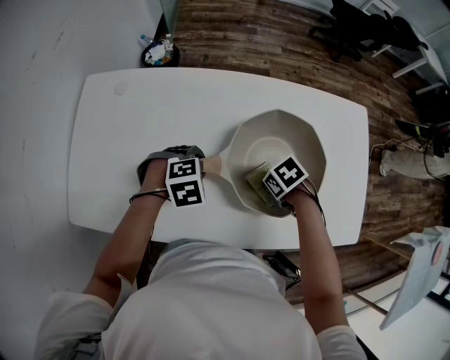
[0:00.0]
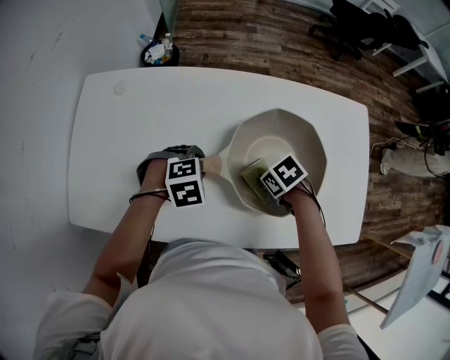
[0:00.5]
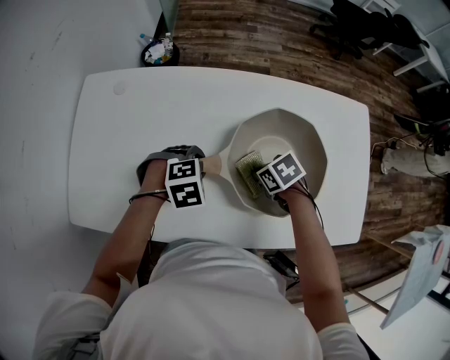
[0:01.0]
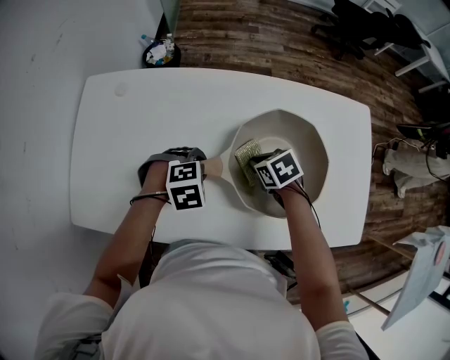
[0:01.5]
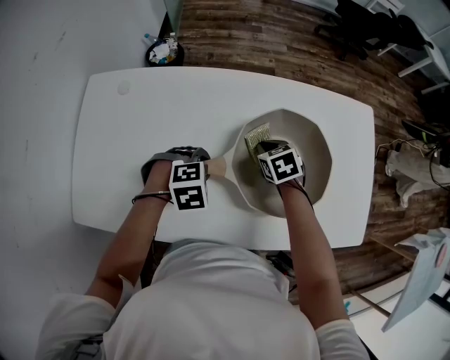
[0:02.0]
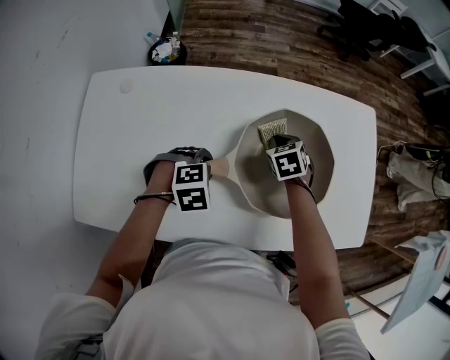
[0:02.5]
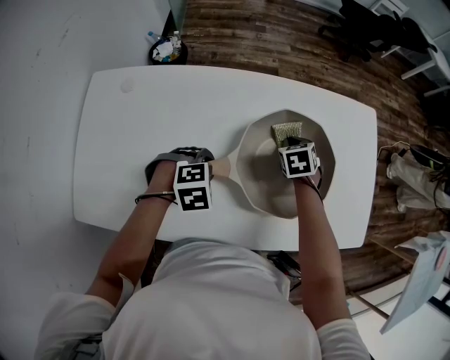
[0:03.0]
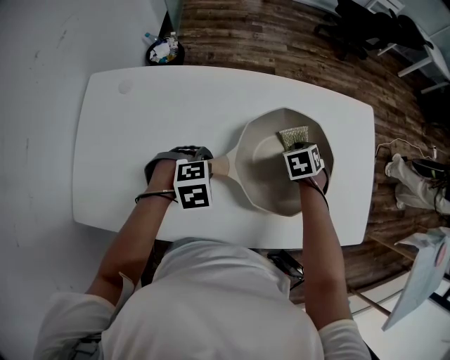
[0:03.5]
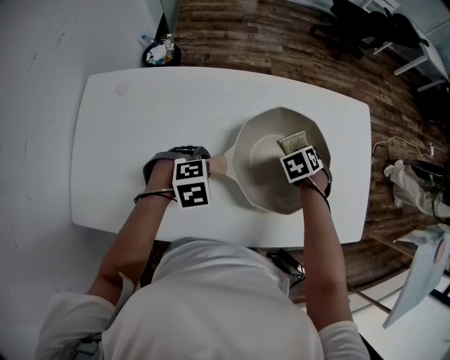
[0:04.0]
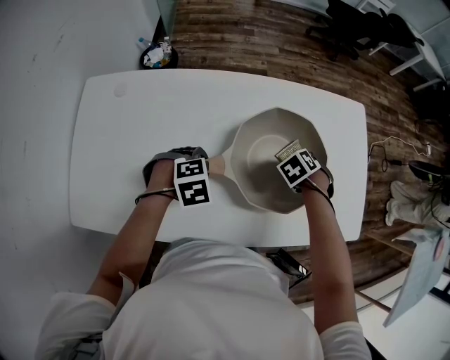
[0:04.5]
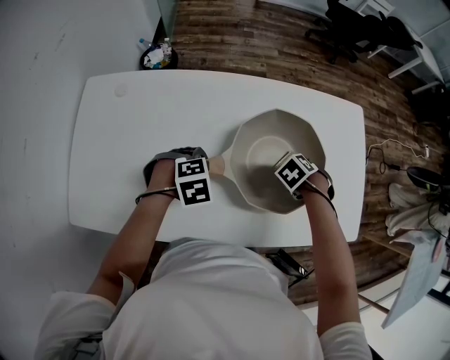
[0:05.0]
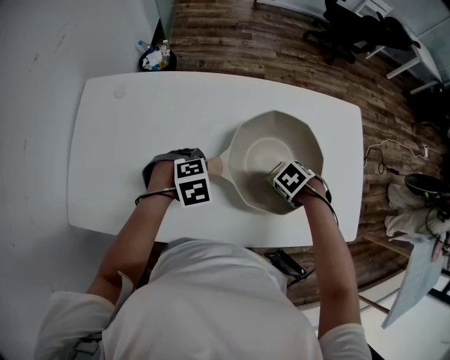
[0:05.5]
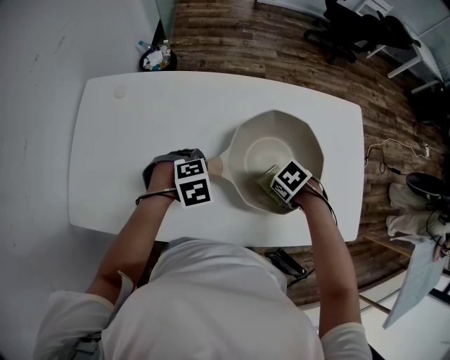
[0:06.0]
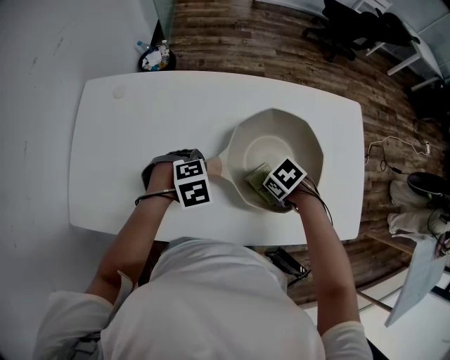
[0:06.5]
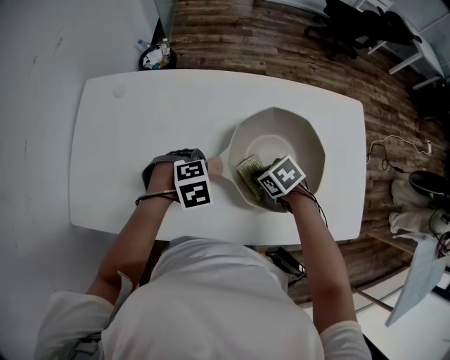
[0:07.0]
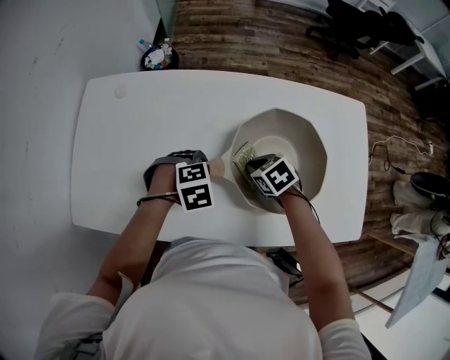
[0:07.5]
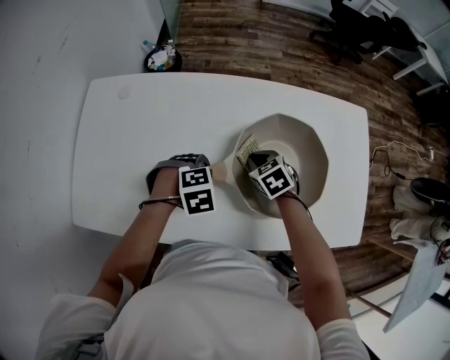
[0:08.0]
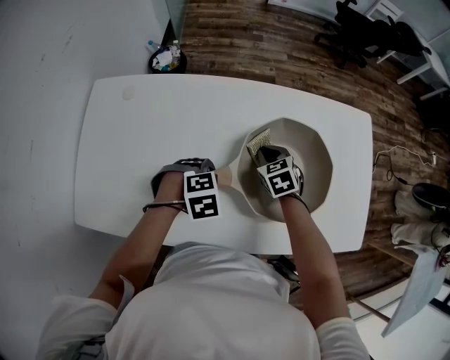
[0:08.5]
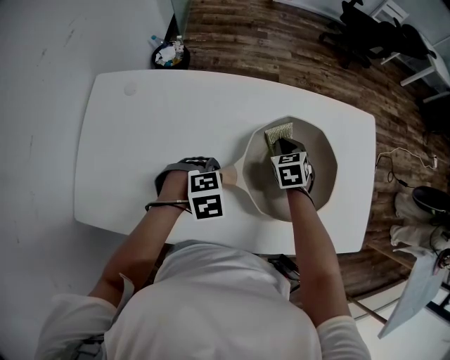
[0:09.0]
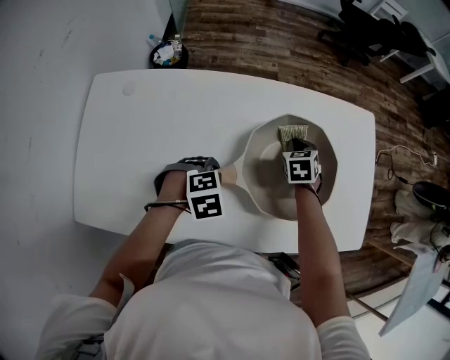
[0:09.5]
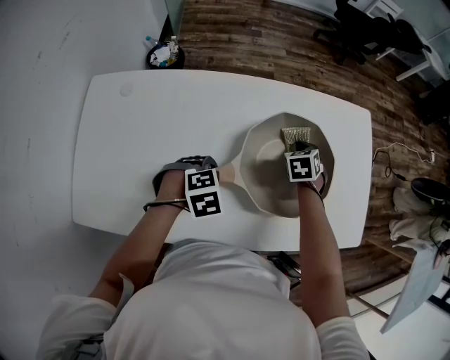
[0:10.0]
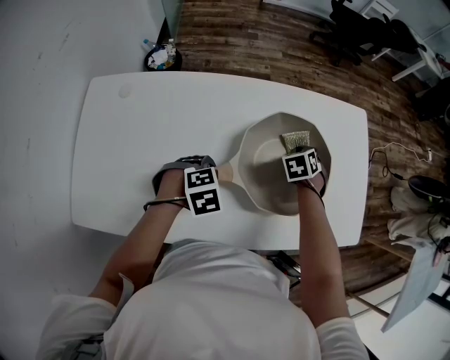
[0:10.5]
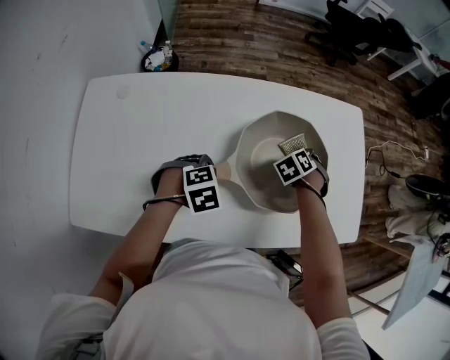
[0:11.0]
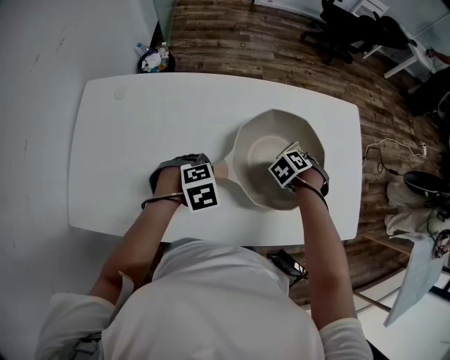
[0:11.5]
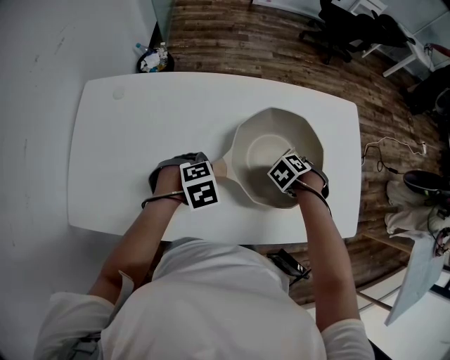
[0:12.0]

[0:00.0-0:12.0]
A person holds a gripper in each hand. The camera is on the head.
0:00.0 to 0:02.0: The right gripper changes place by about 15 cm, and turns by approximately 30 degrees.
0:02.0 to 0:04.0: The right gripper changes place by some 15 cm, and swivels approximately 30 degrees.
0:04.0 to 0:06.0: The right gripper moves some 15 cm, and rotates roughly 40 degrees.
0:06.0 to 0:08.0: The right gripper shifts by roughly 15 cm, and changes its angle by about 40 degrees.
0:08.0 to 0:10.0: The right gripper changes place by roughly 15 cm, and changes its angle by approximately 30 degrees.
0:10.0 to 0:12.0: The right gripper moves about 10 cm, and rotates roughly 40 degrees.

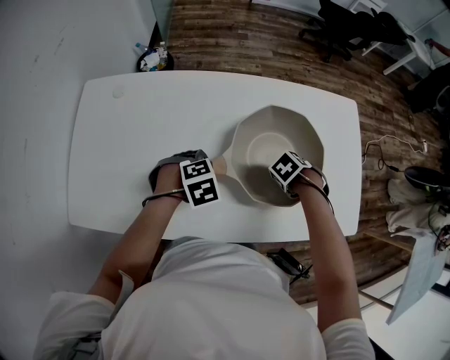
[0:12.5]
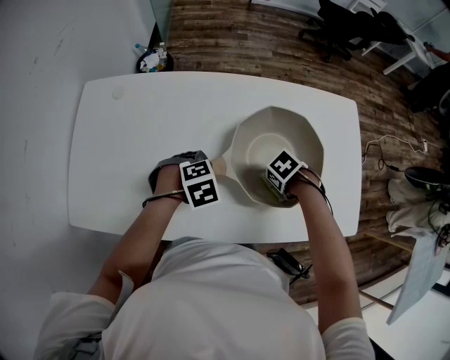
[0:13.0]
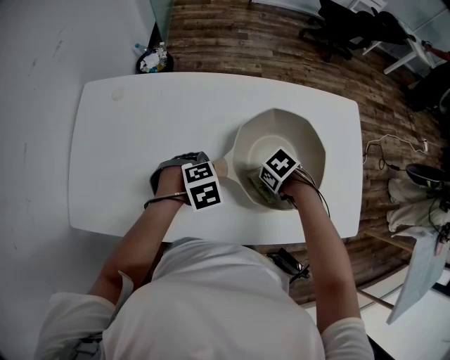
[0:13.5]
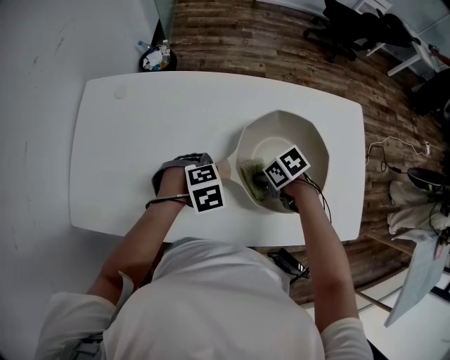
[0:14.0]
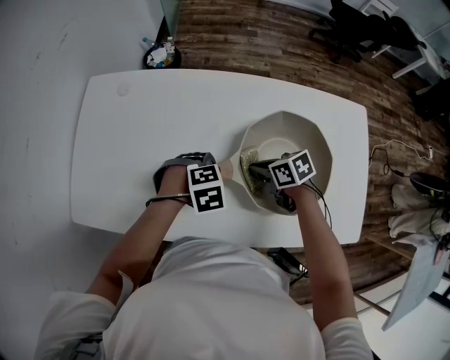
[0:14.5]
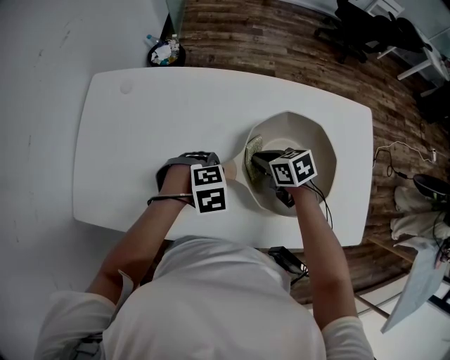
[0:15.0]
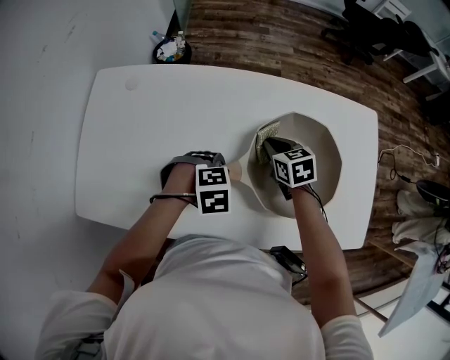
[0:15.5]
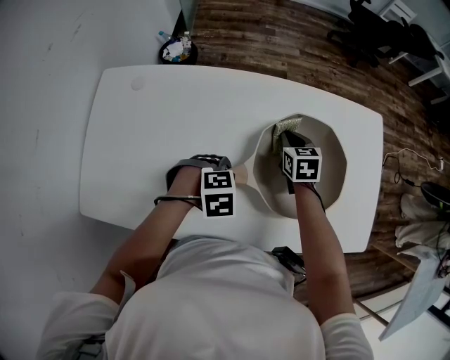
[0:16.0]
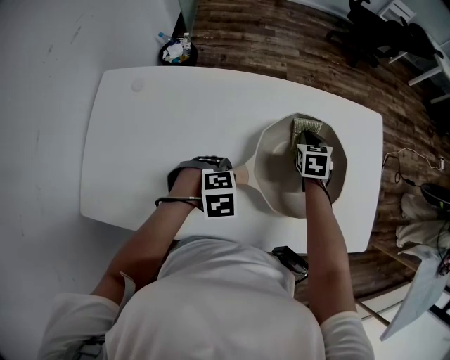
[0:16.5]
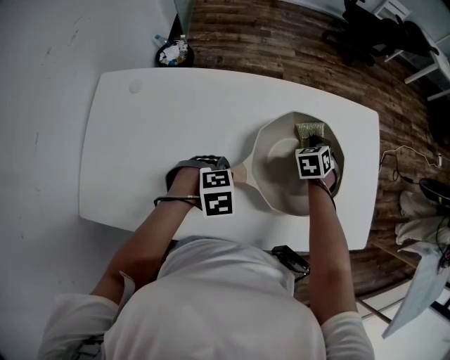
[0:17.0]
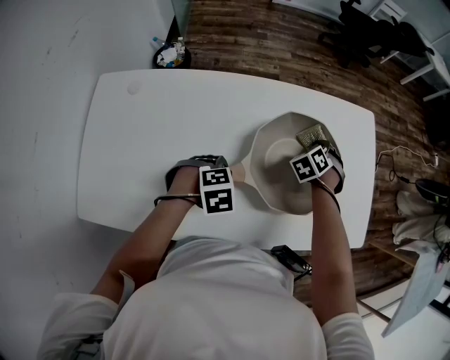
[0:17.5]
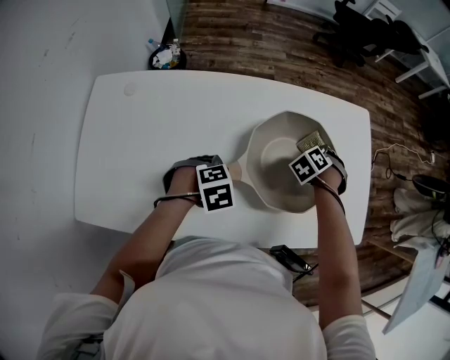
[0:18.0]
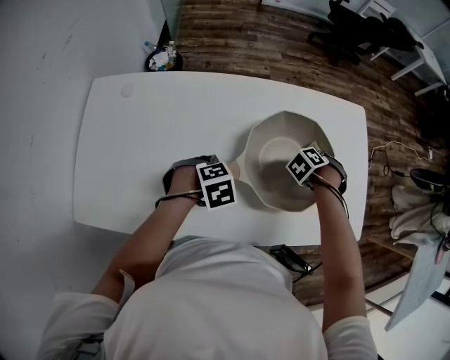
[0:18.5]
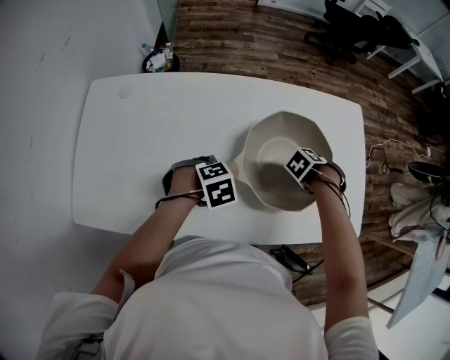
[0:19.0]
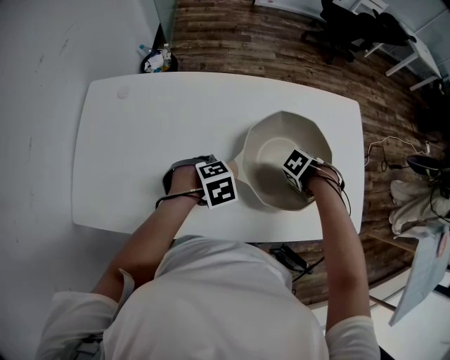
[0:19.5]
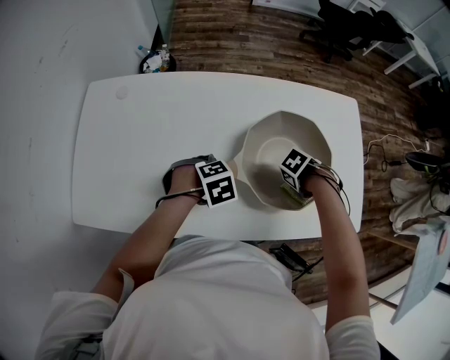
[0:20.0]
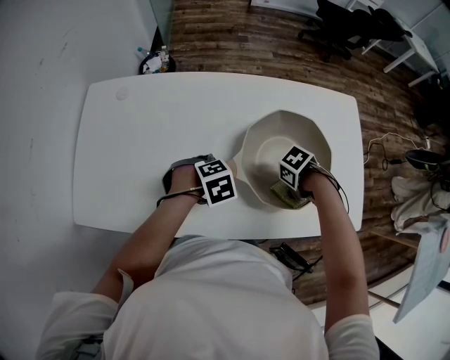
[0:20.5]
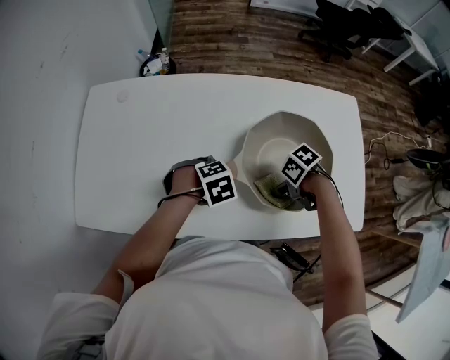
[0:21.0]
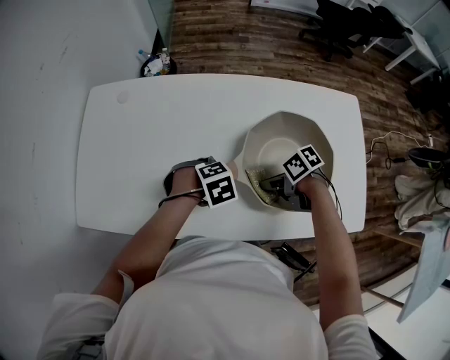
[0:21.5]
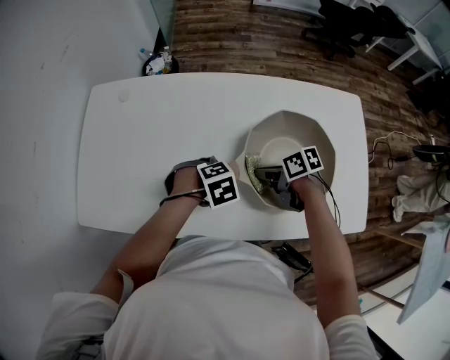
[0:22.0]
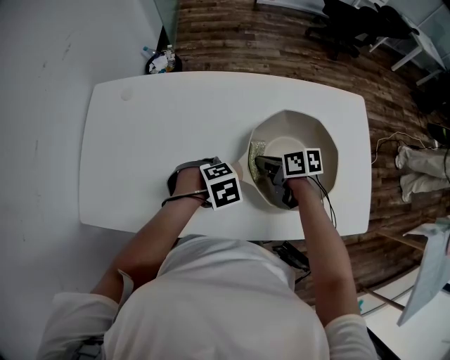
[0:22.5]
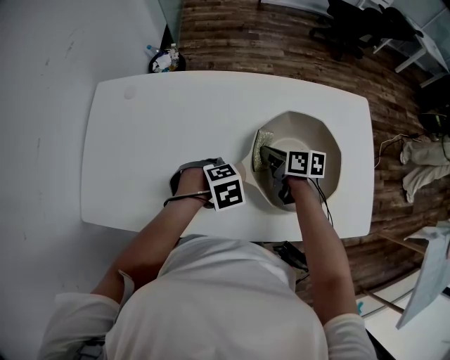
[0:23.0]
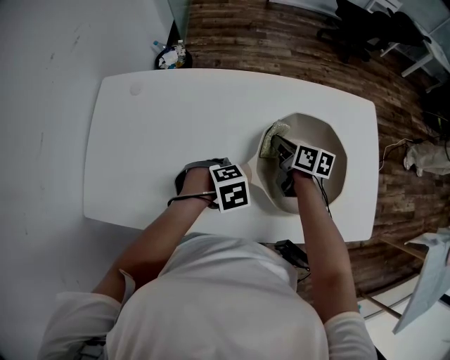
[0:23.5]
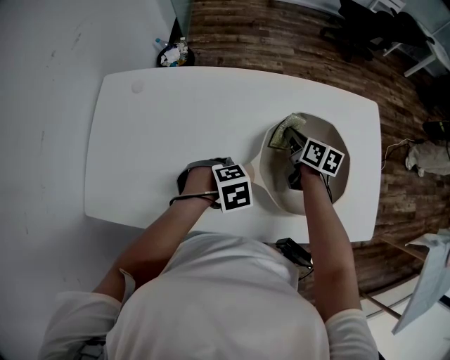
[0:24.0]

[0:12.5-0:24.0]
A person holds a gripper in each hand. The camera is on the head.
0:12.5 to 0:14.5: The right gripper shifts by approximately 15 cm, and tips its fingers upward by roughly 30 degrees.
0:14.5 to 0:16.5: The right gripper moves roughly 20 cm, and changes its angle by roughly 50 degrees.
0:16.5 to 0:18.5: The right gripper changes place by approximately 15 cm, and changes its angle by roughly 60 degrees.
0:18.5 to 0:20.0: The right gripper changes place by approximately 15 cm, and turns by some 30 degrees.
0:20.0 to 0:22.0: The right gripper ends up some 20 cm from where it was, and changes its angle by approximately 70 degrees.
0:22.0 to 0:24.0: The right gripper changes place by roughly 15 cm, and turns by approximately 40 degrees.

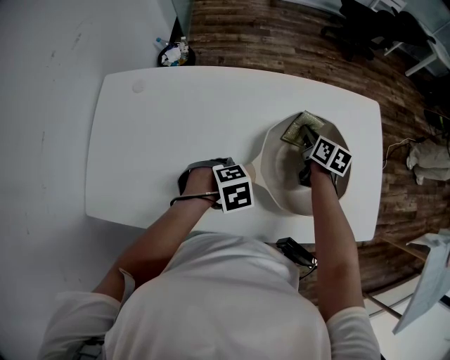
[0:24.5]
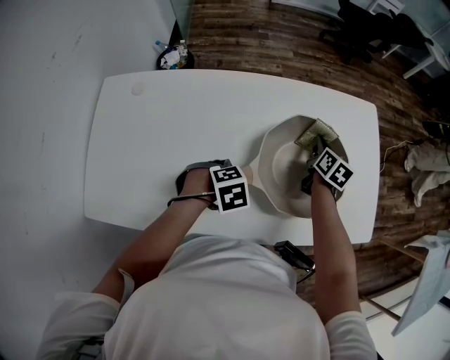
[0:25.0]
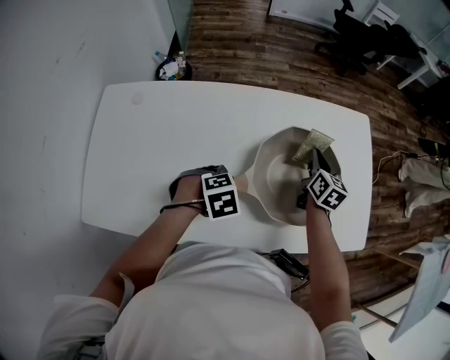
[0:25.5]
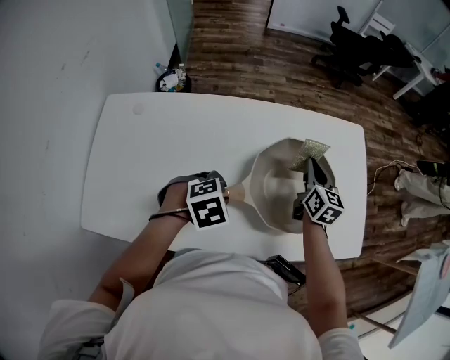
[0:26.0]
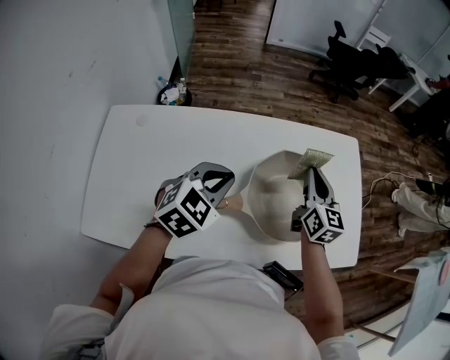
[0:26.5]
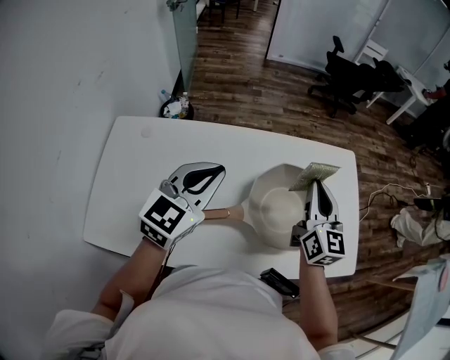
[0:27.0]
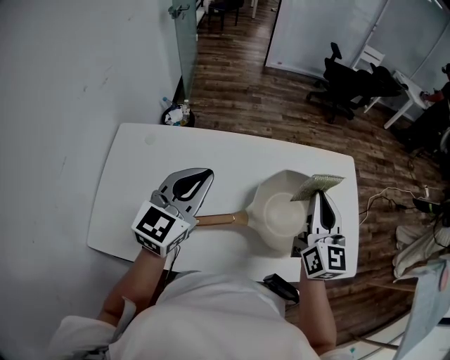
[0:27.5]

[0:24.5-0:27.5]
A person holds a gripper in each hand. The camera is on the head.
0:24.5 to 0:26.0: The grippers both shift upward by roughly 10 cm. The right gripper changes its angle by roughly 20 degrees.
0:26.0 to 0:27.5: The left gripper shifts about 25 cm upward and to the left, angles its fingers upward, by some 60 degrees, and closes its fingers. Meanwhile the right gripper moves upward and backward, some 20 cm, and rotates some 20 degrees.
